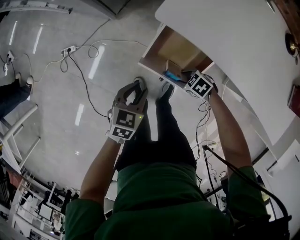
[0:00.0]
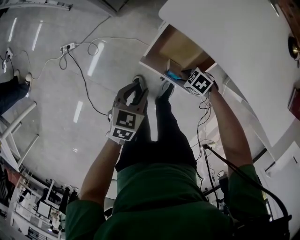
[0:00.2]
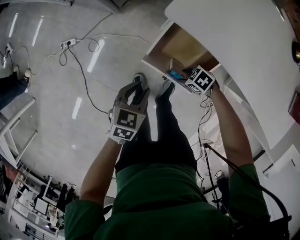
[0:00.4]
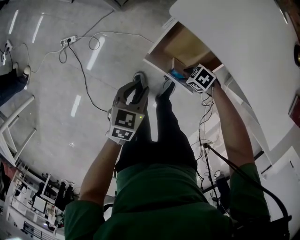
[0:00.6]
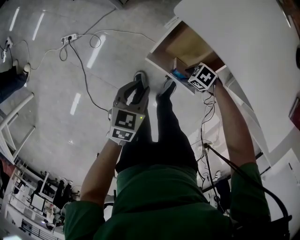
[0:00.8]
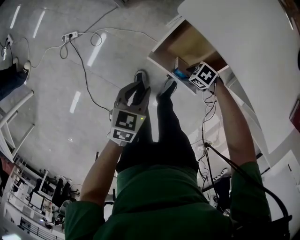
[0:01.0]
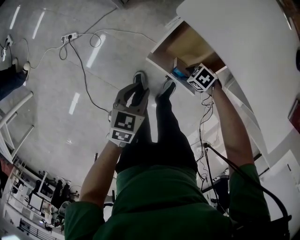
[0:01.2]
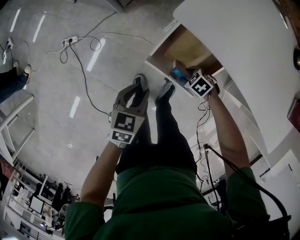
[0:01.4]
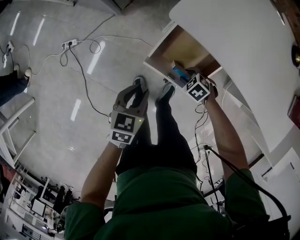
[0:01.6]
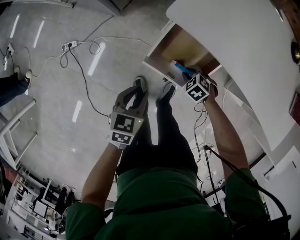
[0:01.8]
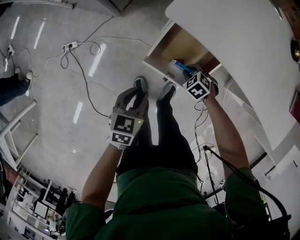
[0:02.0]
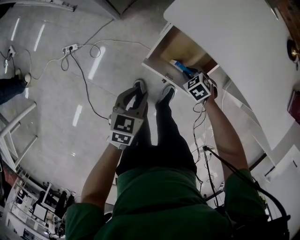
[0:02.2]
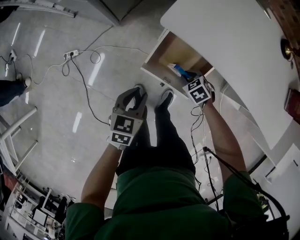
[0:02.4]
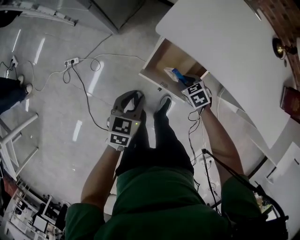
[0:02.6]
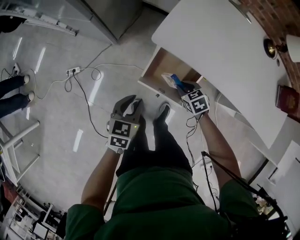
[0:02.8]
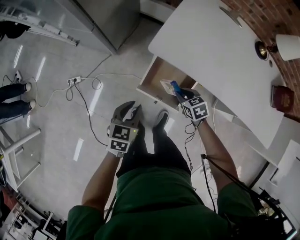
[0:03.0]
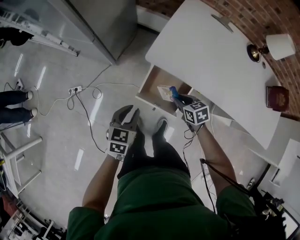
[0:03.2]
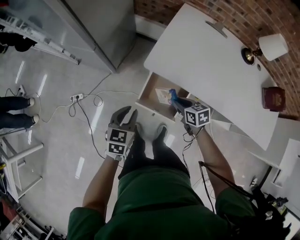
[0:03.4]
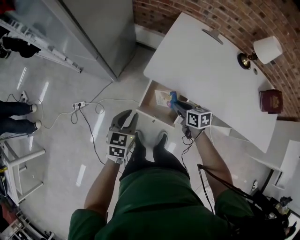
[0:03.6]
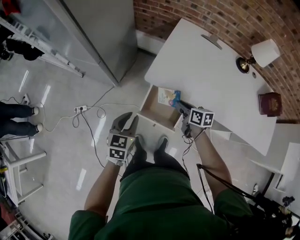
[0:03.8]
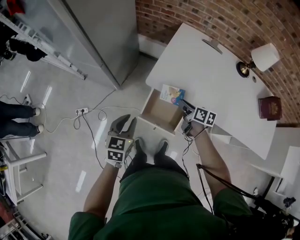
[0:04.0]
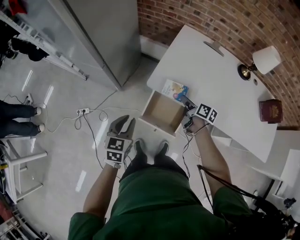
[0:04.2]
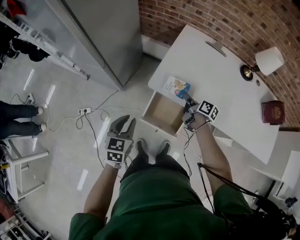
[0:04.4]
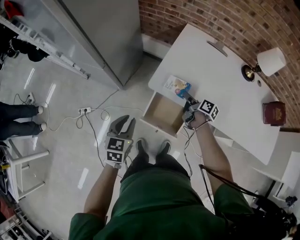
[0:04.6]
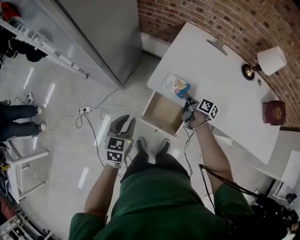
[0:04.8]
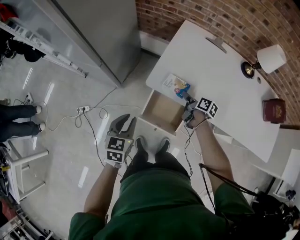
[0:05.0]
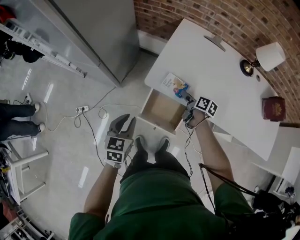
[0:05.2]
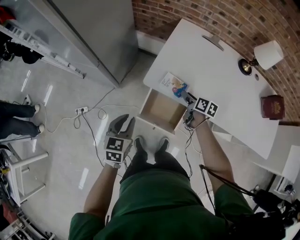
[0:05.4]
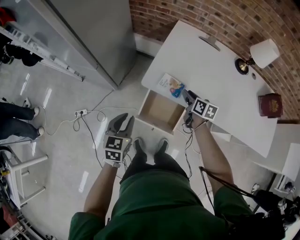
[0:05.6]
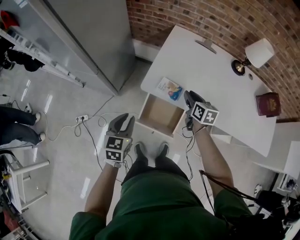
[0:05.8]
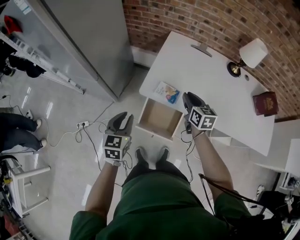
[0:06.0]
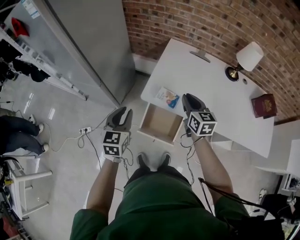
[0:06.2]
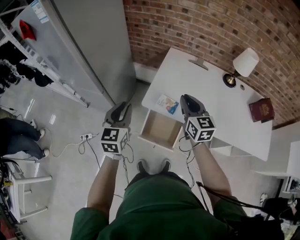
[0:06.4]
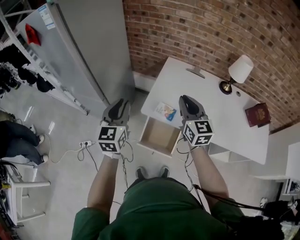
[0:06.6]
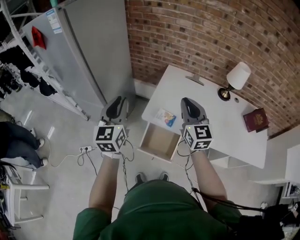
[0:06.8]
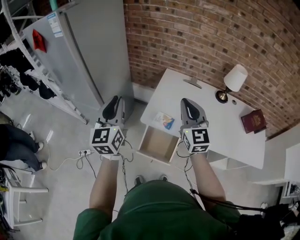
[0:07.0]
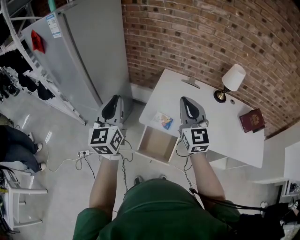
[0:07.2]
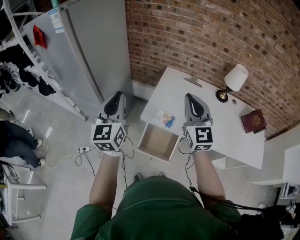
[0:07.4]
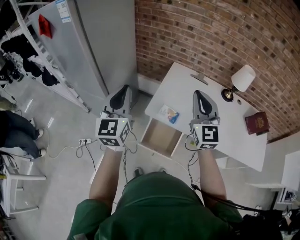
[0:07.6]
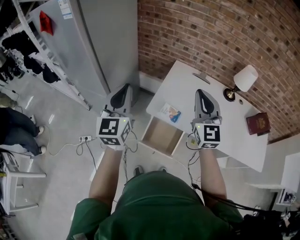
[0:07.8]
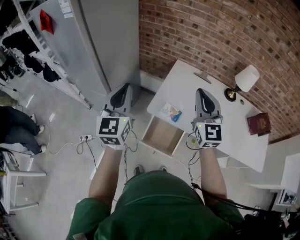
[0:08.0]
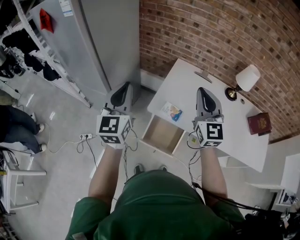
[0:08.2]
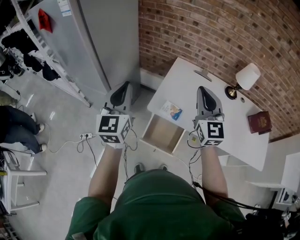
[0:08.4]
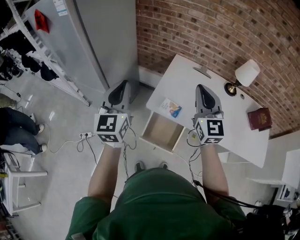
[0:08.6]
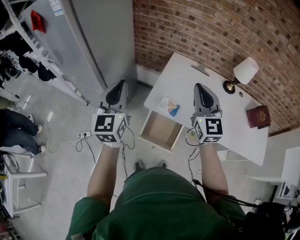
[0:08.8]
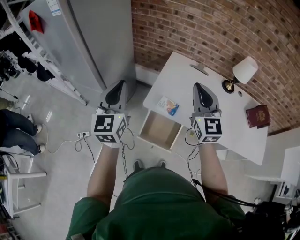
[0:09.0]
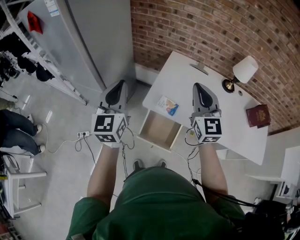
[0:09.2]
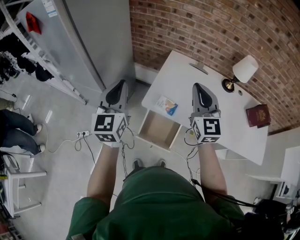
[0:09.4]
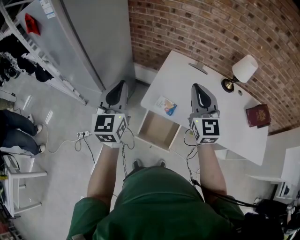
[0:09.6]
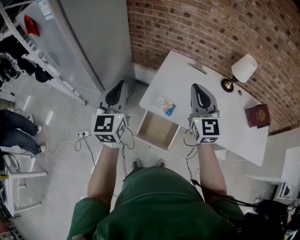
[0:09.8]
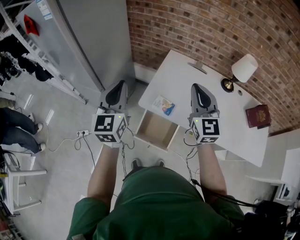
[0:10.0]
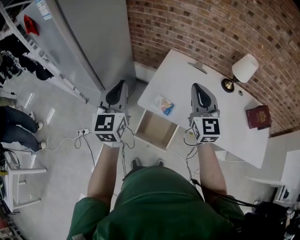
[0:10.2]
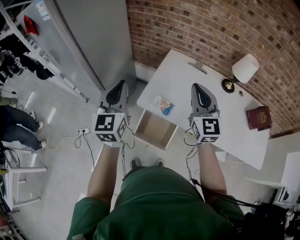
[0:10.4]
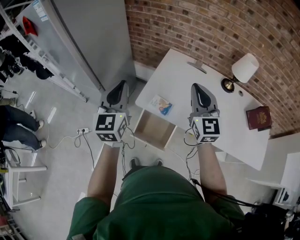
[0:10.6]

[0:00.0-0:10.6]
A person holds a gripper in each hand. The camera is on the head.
0:00.0 to 0:01.6: There are only small adjustments of the grippers.
0:01.6 to 0:03.0: The right gripper shifts approximately 15 cm upward, and changes its angle by some 40 degrees; the left gripper is displaced upward by approximately 10 cm.
0:03.0 to 0:04.6: The right gripper moves forward, upward and to the right, approximately 20 cm, and rolls clockwise, seen from behind, by about 60 degrees, while the left gripper goes some 10 cm upward and forward.
0:04.6 to 0:06.0: The left gripper goes approximately 5 cm upward, while the right gripper moves upward, approximately 15 cm, rolls counterclockwise, seen from behind, by some 50 degrees, and opens, then closes again.
0:06.0 to 0:07.6: Both grippers move upward, about 30 cm. The right gripper tips its fingers upward by about 30 degrees. The left gripper angles its fingers upward, by about 30 degrees.
0:07.6 to 0:09.0: The grippers make only small movements.
0:09.0 to 0:10.6: The grippers both shift to the right by approximately 5 cm.

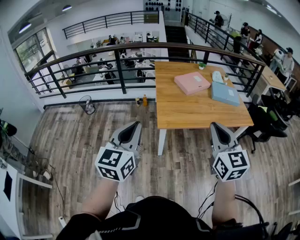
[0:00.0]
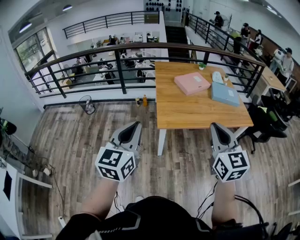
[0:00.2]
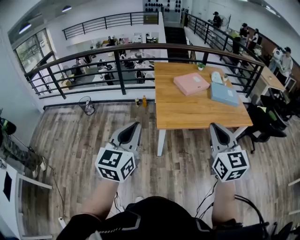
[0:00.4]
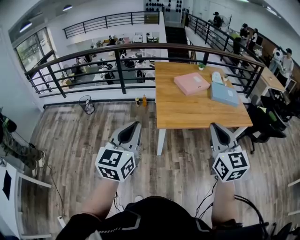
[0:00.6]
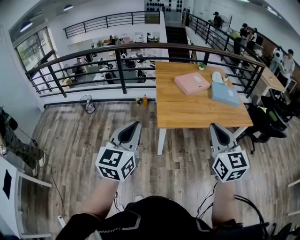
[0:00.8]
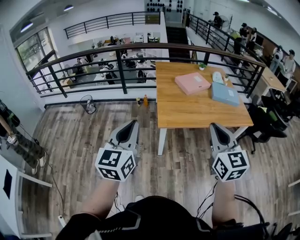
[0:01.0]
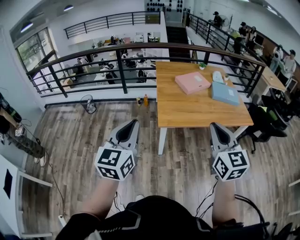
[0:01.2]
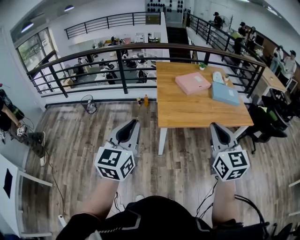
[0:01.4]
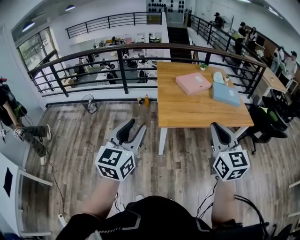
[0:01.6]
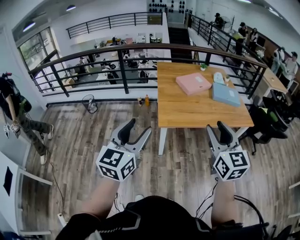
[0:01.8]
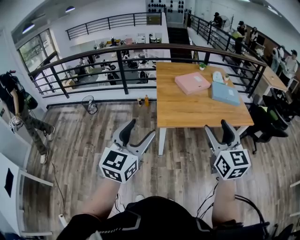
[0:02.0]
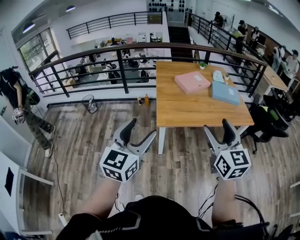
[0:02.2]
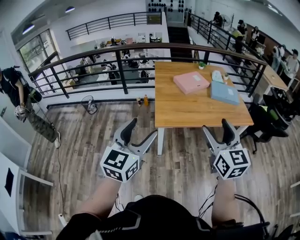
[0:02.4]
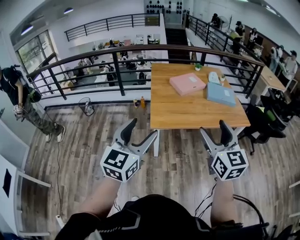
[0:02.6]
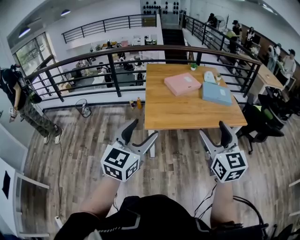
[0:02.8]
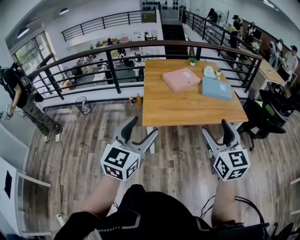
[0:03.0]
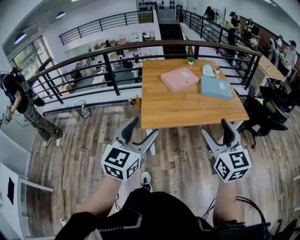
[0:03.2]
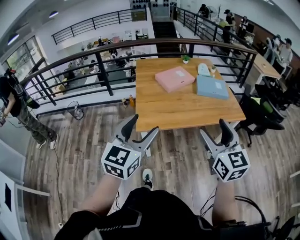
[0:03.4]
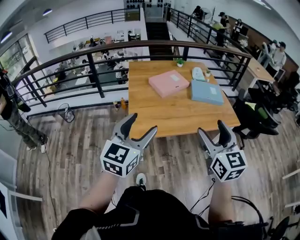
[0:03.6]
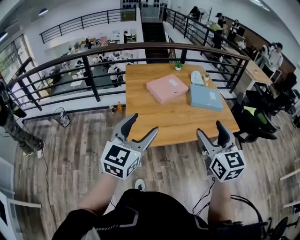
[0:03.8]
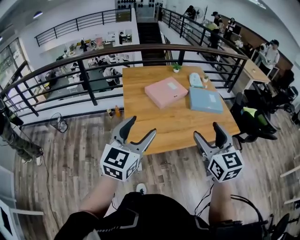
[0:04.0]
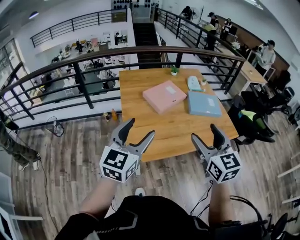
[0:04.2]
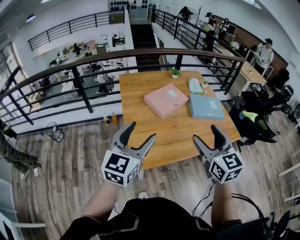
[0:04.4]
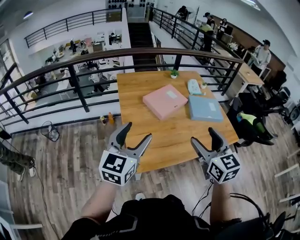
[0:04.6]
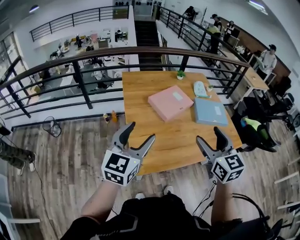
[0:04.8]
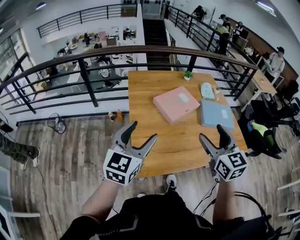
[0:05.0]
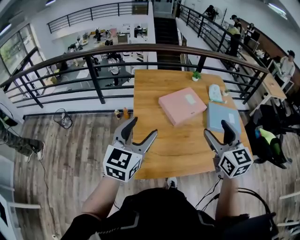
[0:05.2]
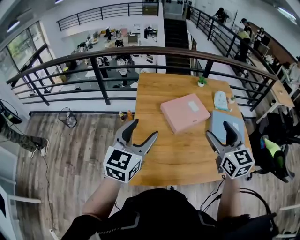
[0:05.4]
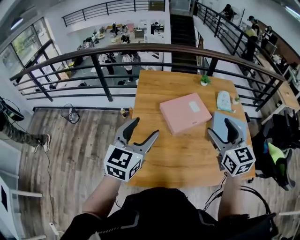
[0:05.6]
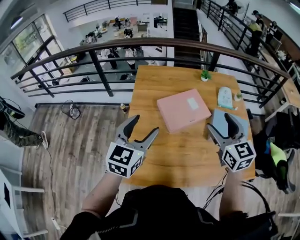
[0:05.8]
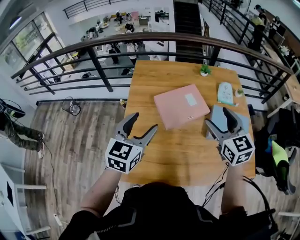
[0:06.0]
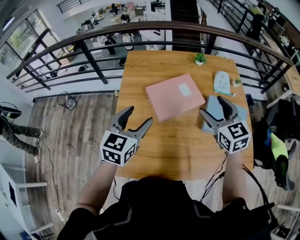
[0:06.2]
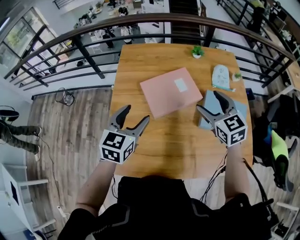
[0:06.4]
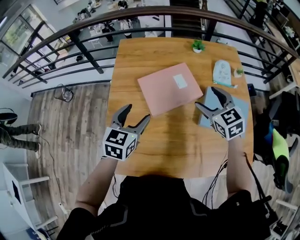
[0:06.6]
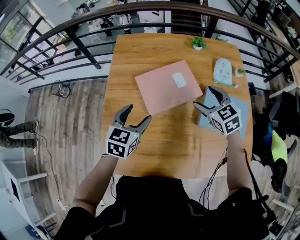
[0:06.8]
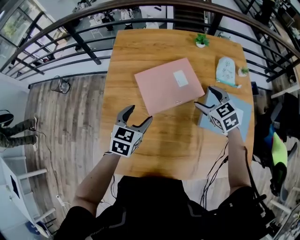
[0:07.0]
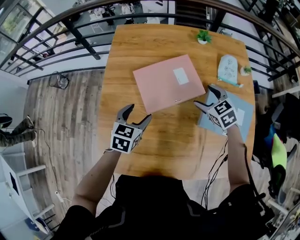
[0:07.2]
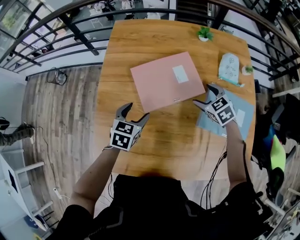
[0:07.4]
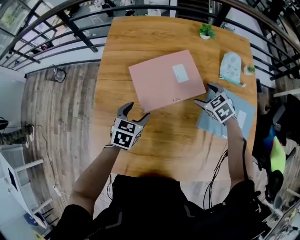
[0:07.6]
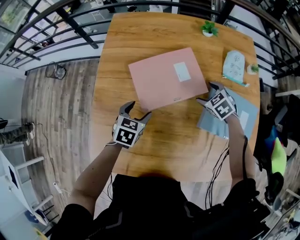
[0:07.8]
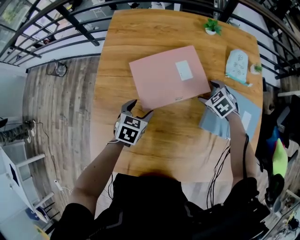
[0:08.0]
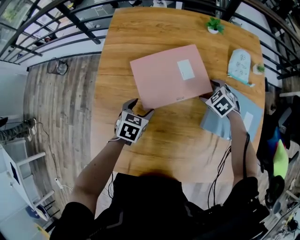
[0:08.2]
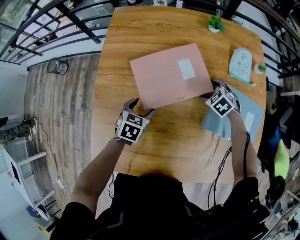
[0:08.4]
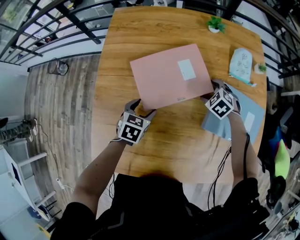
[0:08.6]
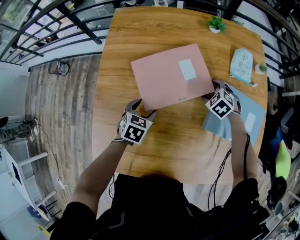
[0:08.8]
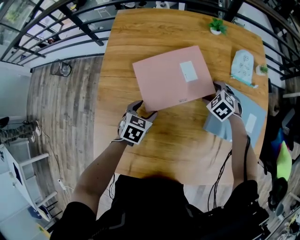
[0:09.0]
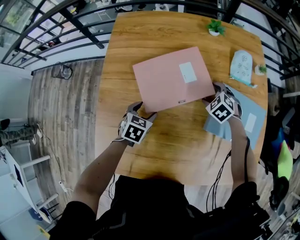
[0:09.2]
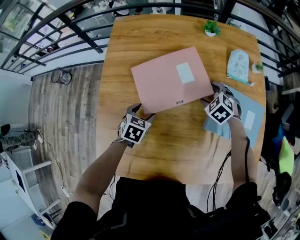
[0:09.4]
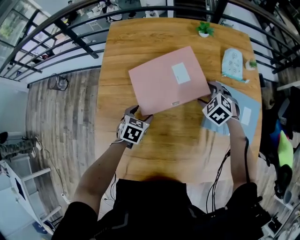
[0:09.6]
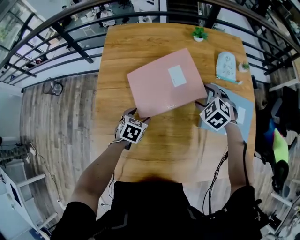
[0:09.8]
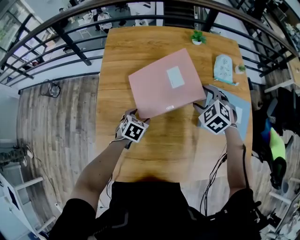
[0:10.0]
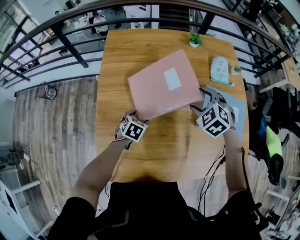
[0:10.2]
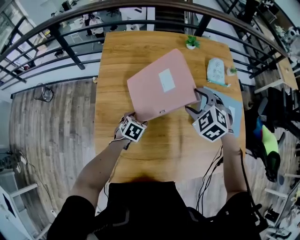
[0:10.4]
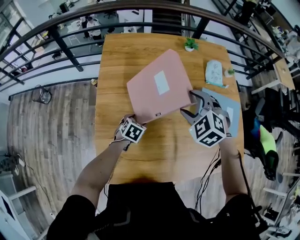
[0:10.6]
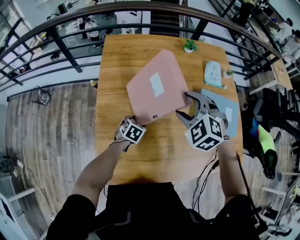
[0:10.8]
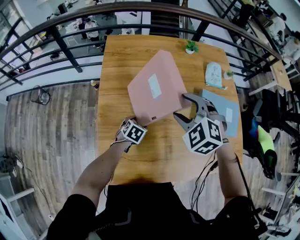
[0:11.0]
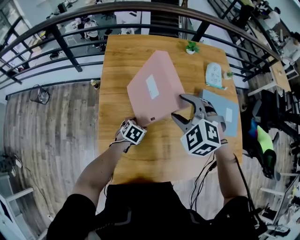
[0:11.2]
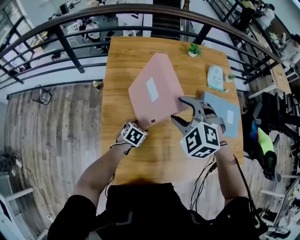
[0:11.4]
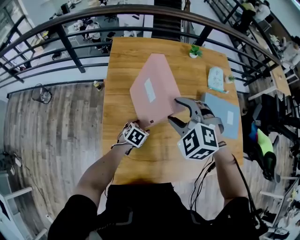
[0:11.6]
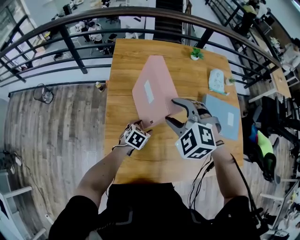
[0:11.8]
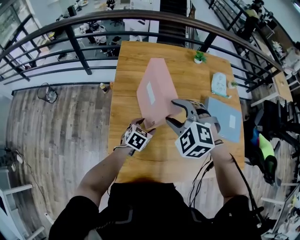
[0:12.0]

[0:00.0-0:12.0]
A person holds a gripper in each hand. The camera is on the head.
0:00.0 to 0:01.6: The left gripper opens up.
0:01.6 to 0:03.0: Both grippers move to the right, roughly 15 cm. The left gripper opens up. Meanwhile the right gripper opens.
0:03.0 to 0:04.4: The two grippers go about 30 cm forward.
0:04.4 to 0:06.0: Both grippers move forward, some 30 cm. The left gripper changes its angle by approximately 20 degrees. Meanwhile the right gripper changes its angle by about 20 degrees.
0:06.0 to 0:07.6: The left gripper heads downward, covering approximately 25 cm, and angles its fingers downward, by approximately 30 degrees, while the right gripper goes roughly 35 cm downward and forward, and tips its fingers downward by some 40 degrees.
0:07.6 to 0:09.0: The grippers both shift downward by about 5 cm.
0:09.0 to 0:10.4: The right gripper travels upward, to the left and backward by roughly 25 cm.
0:10.4 to 0:12.0: The right gripper goes some 20 cm to the left, backward and upward. The left gripper moves upward, some 5 cm.

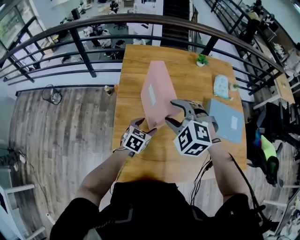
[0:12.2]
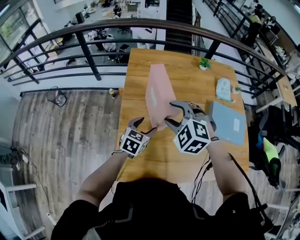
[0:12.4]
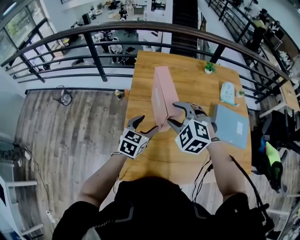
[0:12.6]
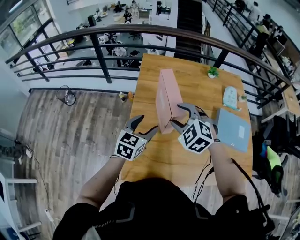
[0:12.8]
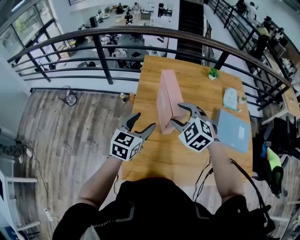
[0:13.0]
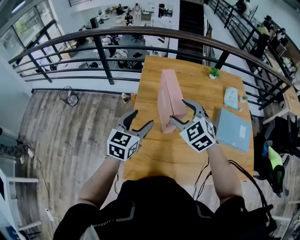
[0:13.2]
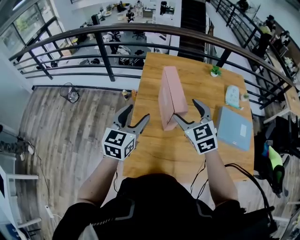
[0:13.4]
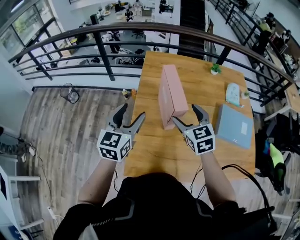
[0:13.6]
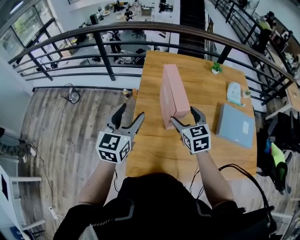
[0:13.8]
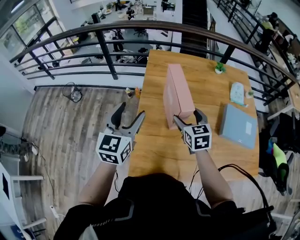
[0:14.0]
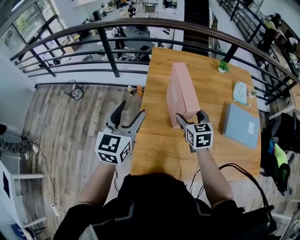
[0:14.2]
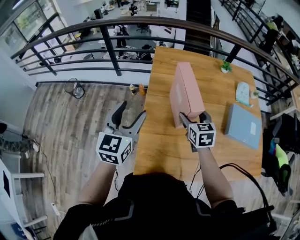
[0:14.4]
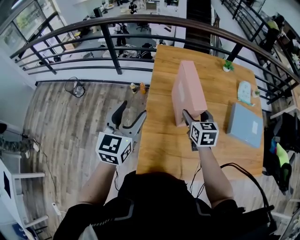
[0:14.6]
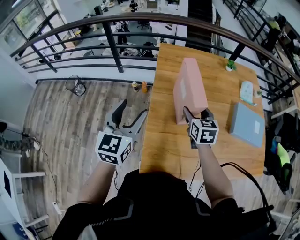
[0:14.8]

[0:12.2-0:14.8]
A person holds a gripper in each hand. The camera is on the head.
0:12.2 to 0:13.4: The left gripper is displaced upward and to the left by about 25 cm, and changes its angle by approximately 30 degrees. Meanwhile the right gripper turns by about 40 degrees.
0:13.4 to 0:14.8: The left gripper travels to the left by roughly 10 cm; the right gripper is displaced downward by some 10 cm, and changes its angle by approximately 30 degrees.
